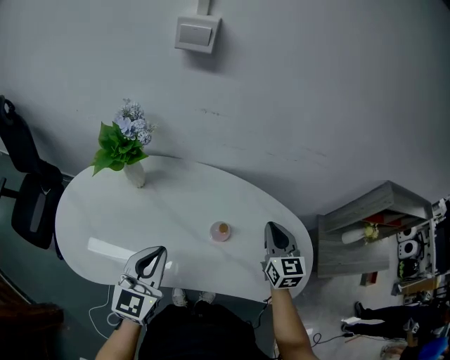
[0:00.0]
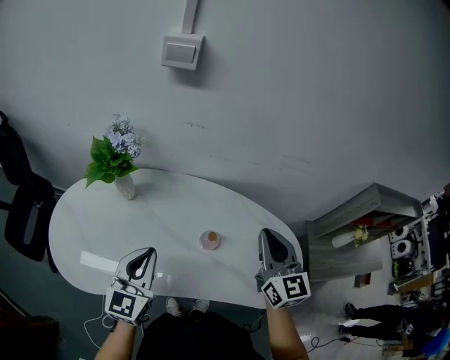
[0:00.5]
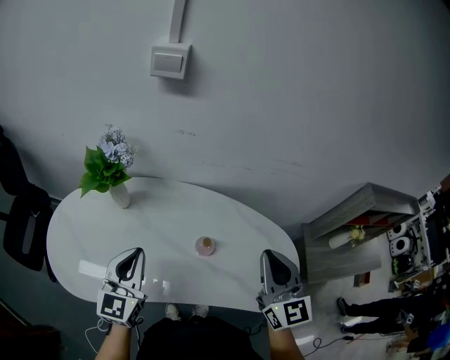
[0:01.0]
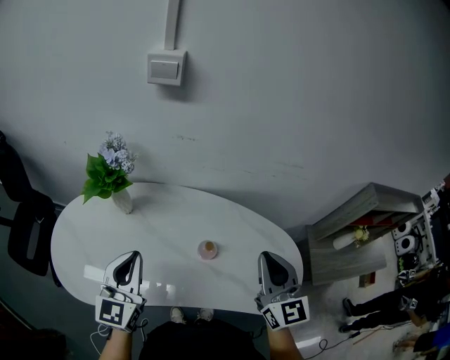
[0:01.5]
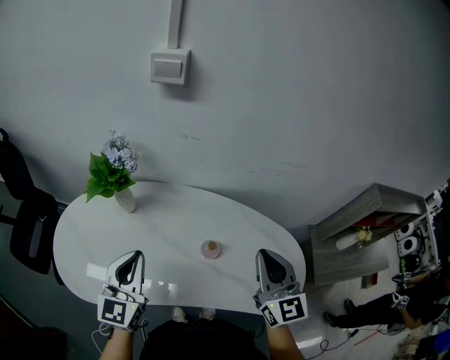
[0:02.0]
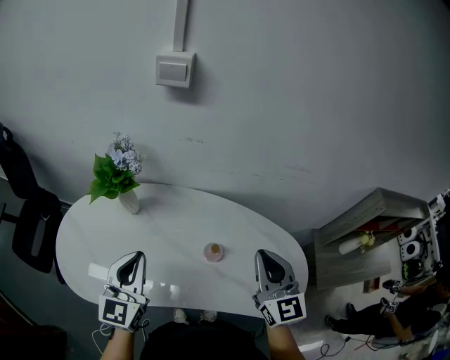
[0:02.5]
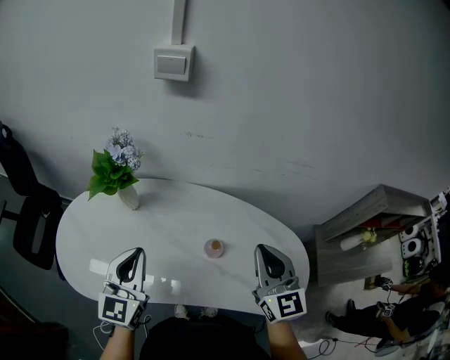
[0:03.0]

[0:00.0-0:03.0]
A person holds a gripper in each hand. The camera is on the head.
0:00.0 to 0:01.5: The left gripper shifts some 5 cm upward. Meanwhile the right gripper heads upward and backward, covering approximately 15 cm.
0:01.5 to 0:03.0: There are only small adjustments of the grippers.

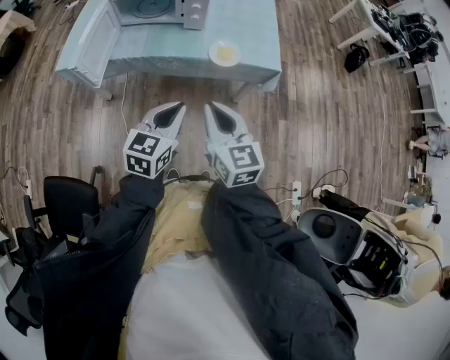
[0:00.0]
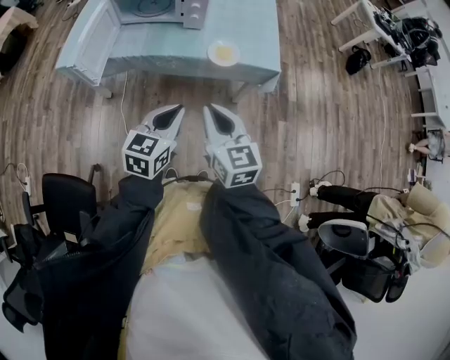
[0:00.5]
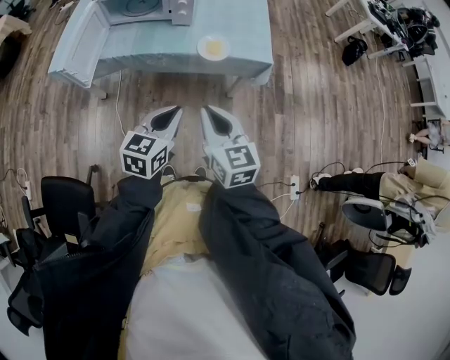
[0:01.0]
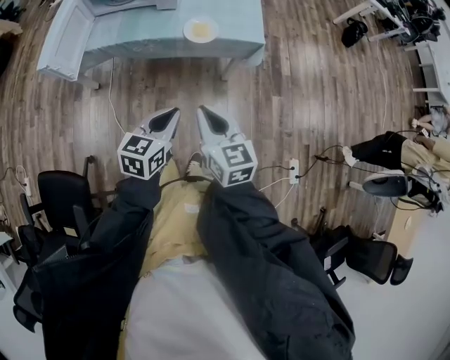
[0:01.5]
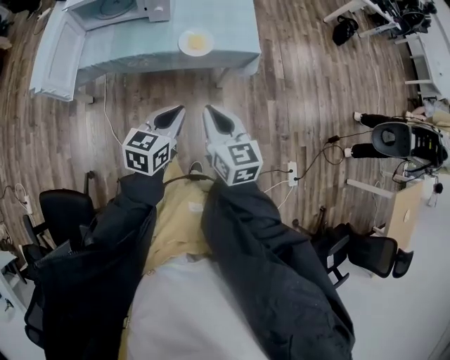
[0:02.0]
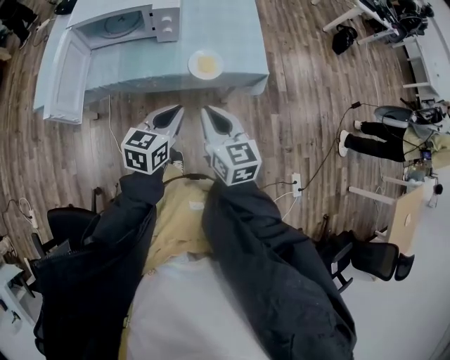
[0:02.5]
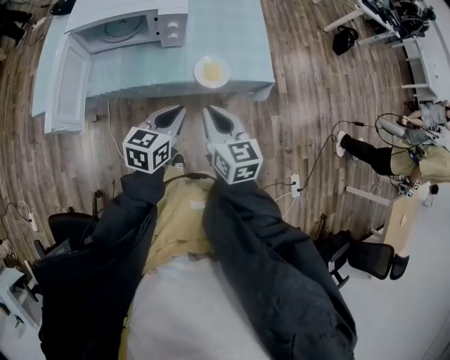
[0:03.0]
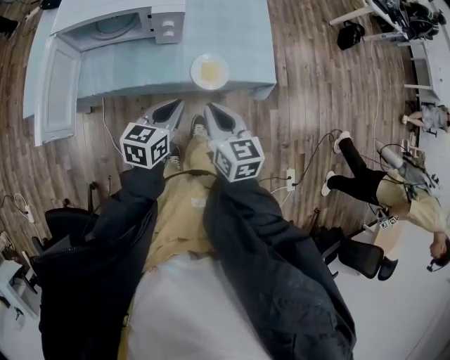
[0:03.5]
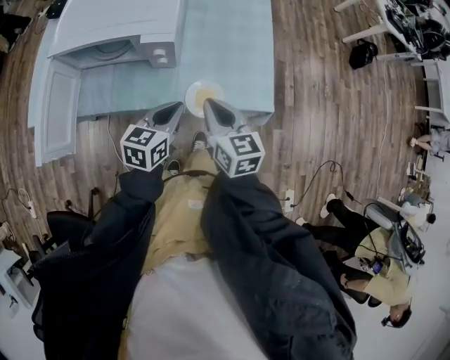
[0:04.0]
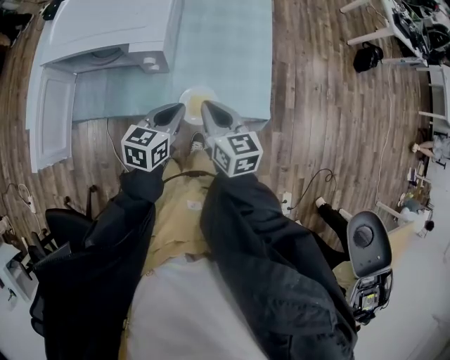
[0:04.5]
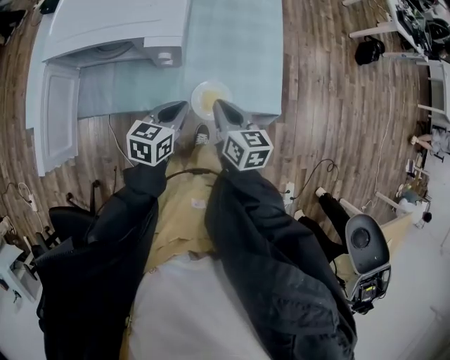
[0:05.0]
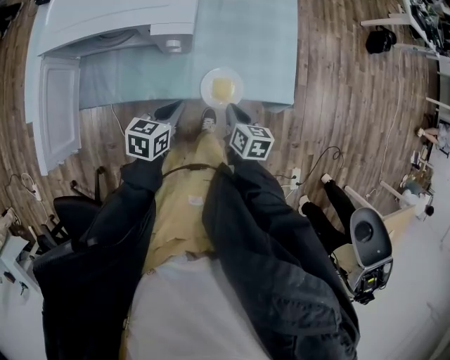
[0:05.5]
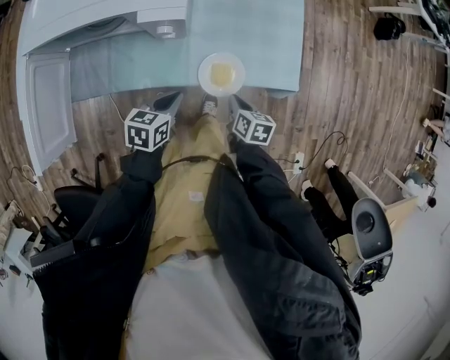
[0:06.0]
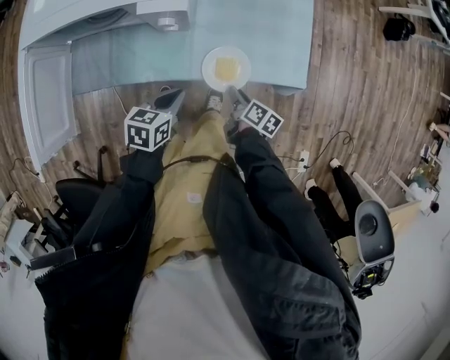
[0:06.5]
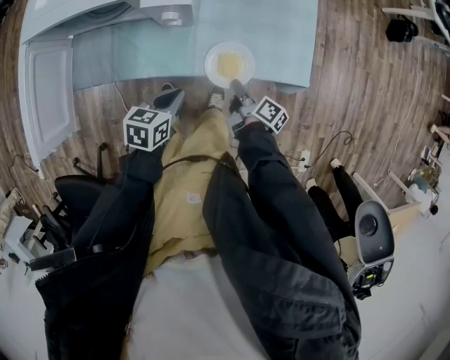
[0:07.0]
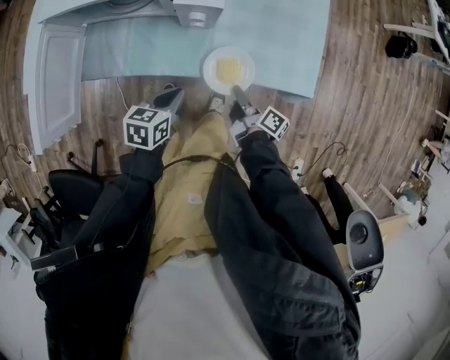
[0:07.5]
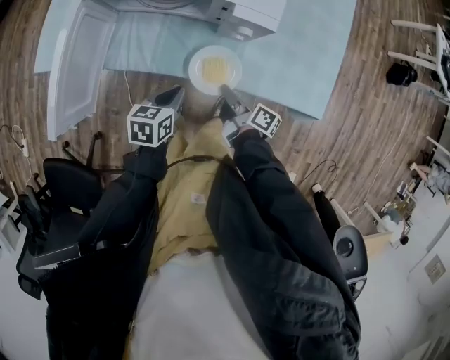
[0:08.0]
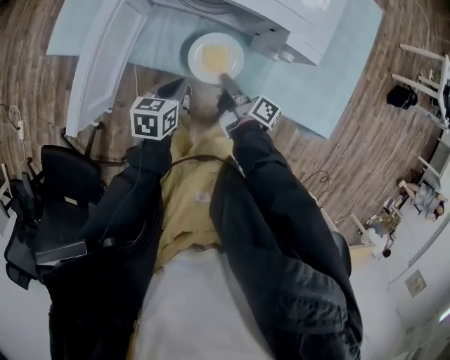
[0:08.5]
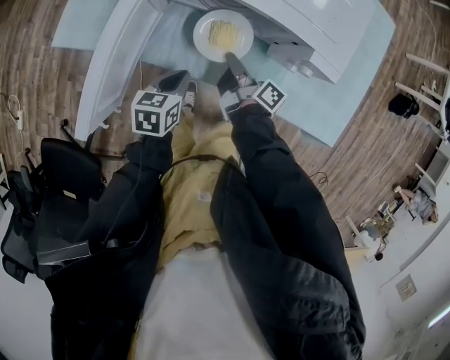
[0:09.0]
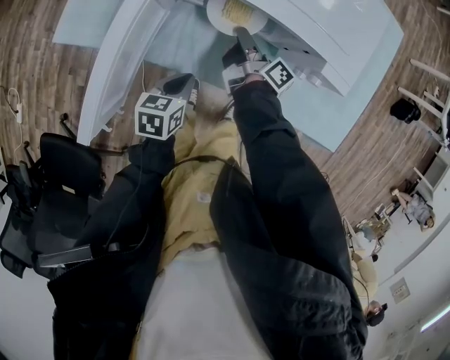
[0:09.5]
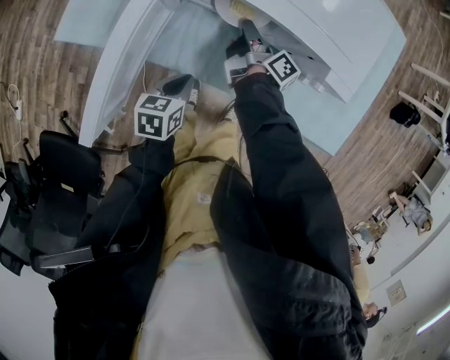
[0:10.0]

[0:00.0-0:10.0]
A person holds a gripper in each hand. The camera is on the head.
0:00.0 to 0:02.0: Both grippers move to the right and downward, roughly 10 cm.
0:02.0 to 0:04.0: Both grippers move forward, some 30 cm.
0:04.0 to 0:06.0: The right gripper heads downward, covering about 25 cm, and turns by approximately 40 degrees. Meanwhile the left gripper goes roughly 15 cm downward, and rotates approximately 20 degrees.
0:06.0 to 0:08.0: The two grippers go about 15 cm to the left. The right gripper angles its fingers upward, by roughly 30 degrees, and opens and closes again.
0:08.0 to 0:10.0: The left gripper heads to the left and forward, covering some 15 cm. The right gripper is displaced forward and to the left by roughly 30 cm.

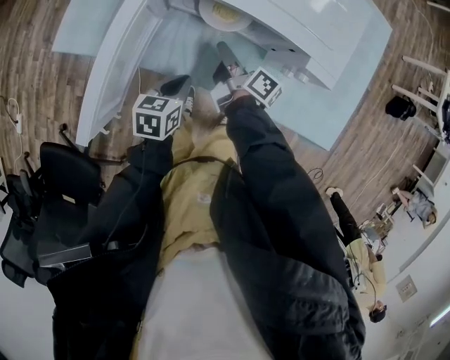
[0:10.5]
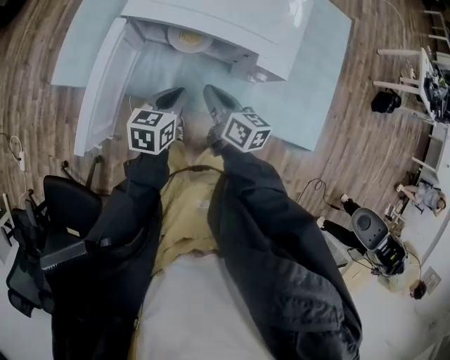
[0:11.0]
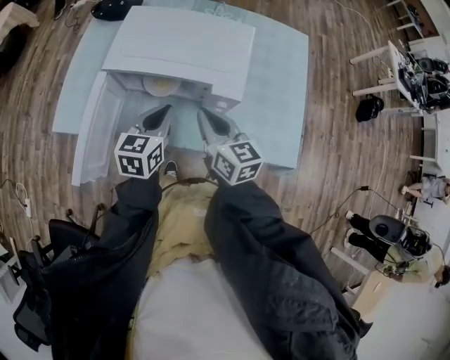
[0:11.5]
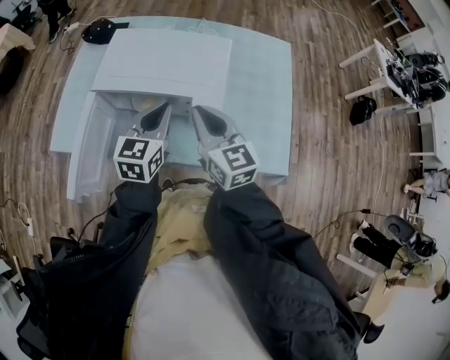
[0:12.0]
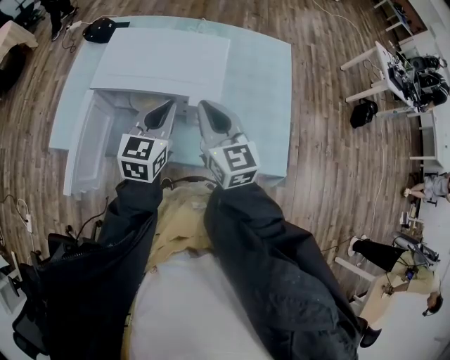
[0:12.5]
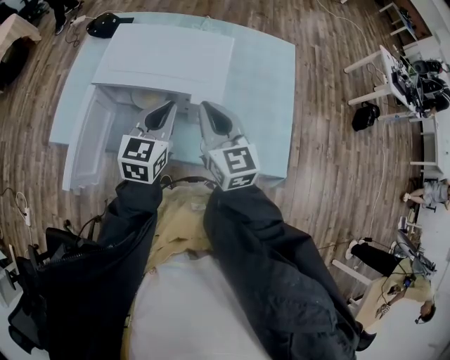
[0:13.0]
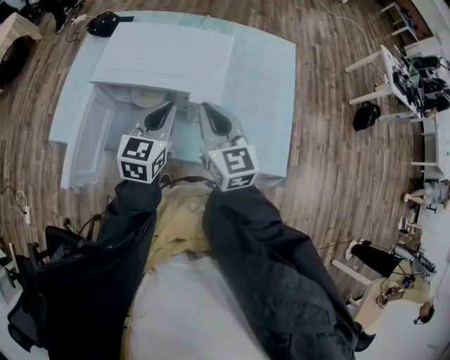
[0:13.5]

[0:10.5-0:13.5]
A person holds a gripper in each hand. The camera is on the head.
0:10.5 to 0:12.0: The grippers both shift upward and to the right by about 30 cm. The right gripper rotates around the line of its fingers by about 70 degrees, counterclockwise from behind, and closes. The left gripper rotates roughly 40 degrees.
0:12.0 to 0:13.5: The grippers stay close to where they were, moving slightly.

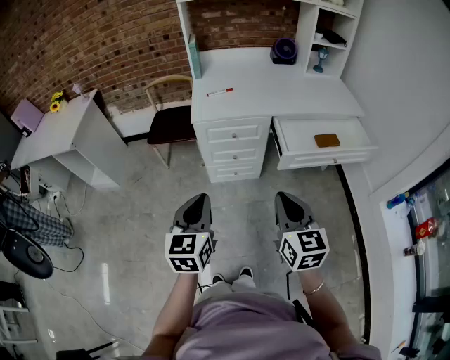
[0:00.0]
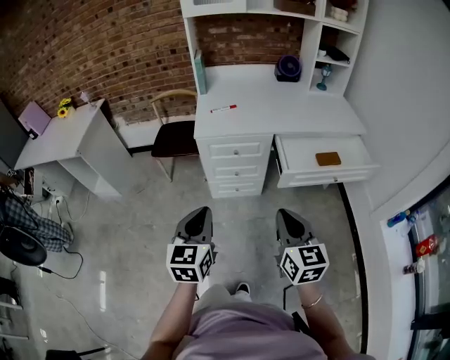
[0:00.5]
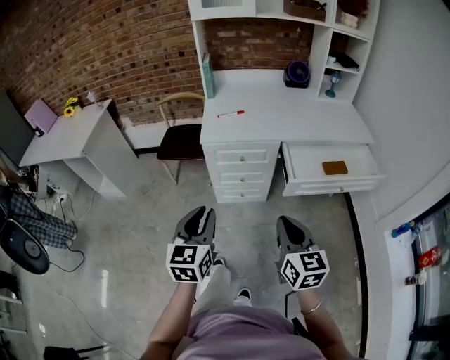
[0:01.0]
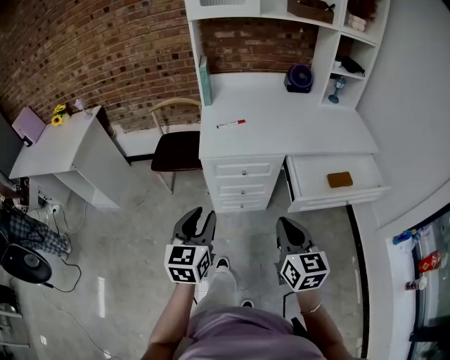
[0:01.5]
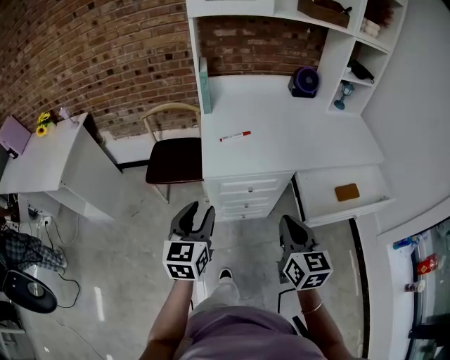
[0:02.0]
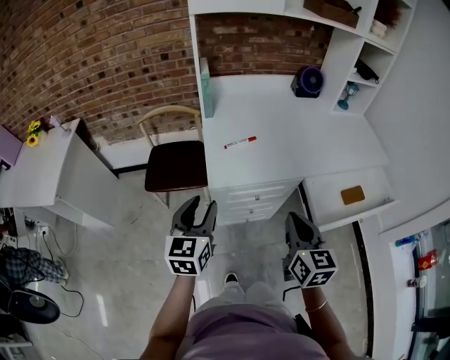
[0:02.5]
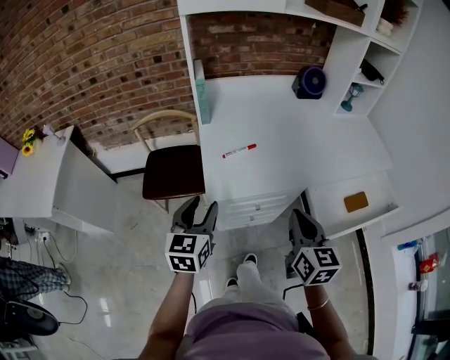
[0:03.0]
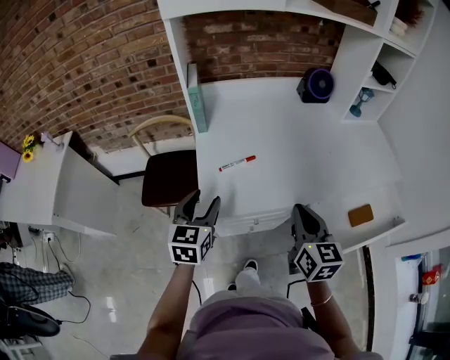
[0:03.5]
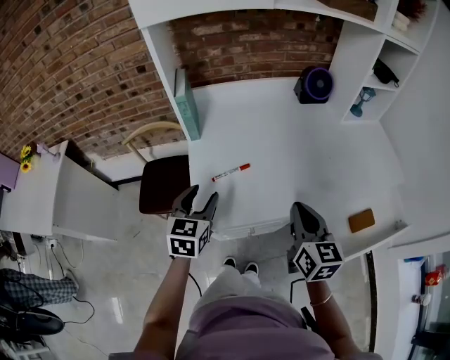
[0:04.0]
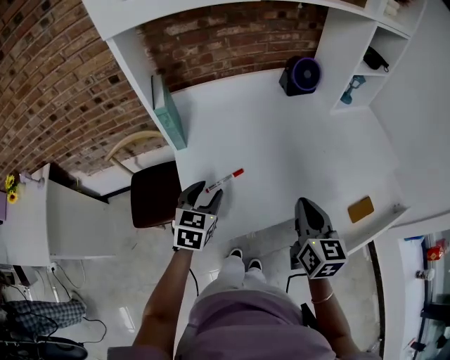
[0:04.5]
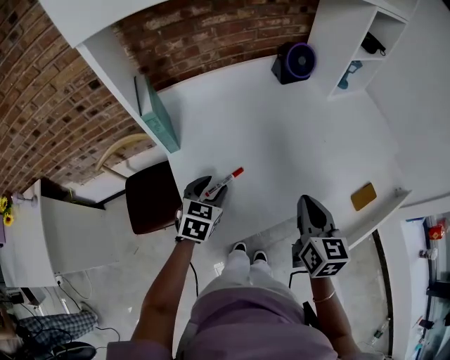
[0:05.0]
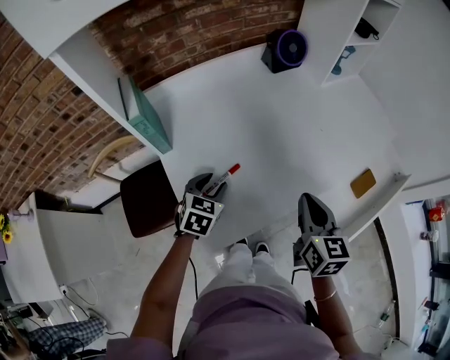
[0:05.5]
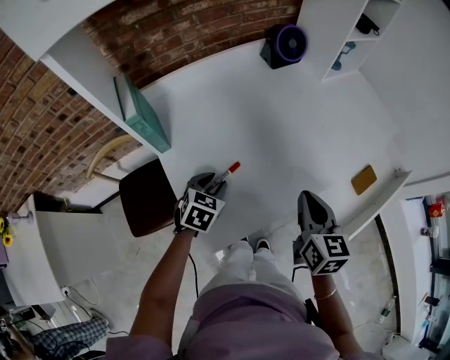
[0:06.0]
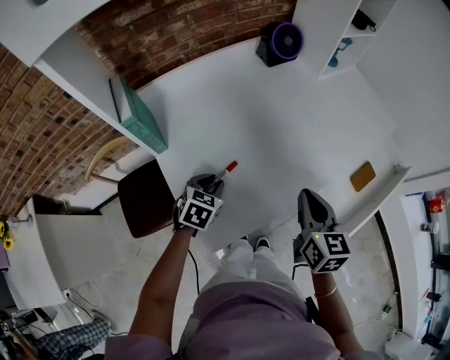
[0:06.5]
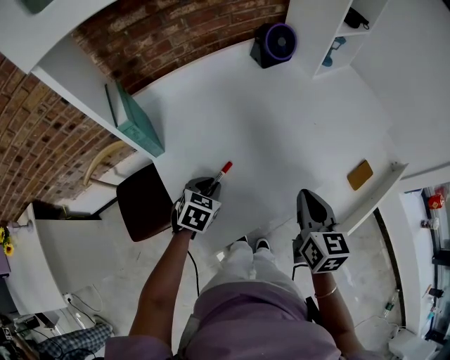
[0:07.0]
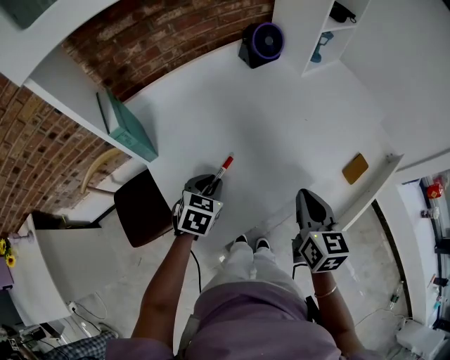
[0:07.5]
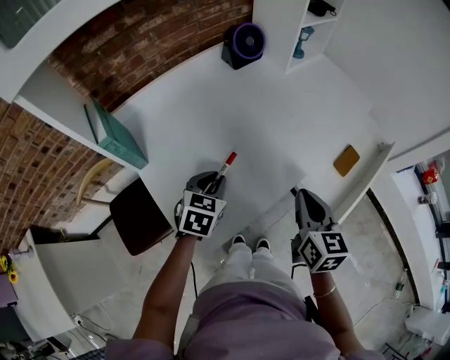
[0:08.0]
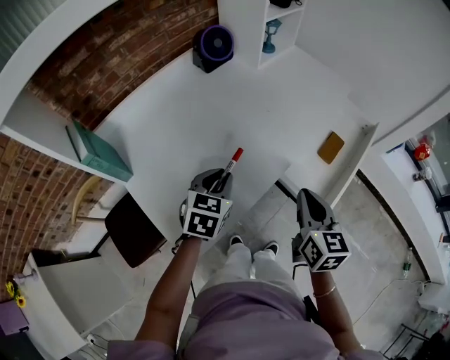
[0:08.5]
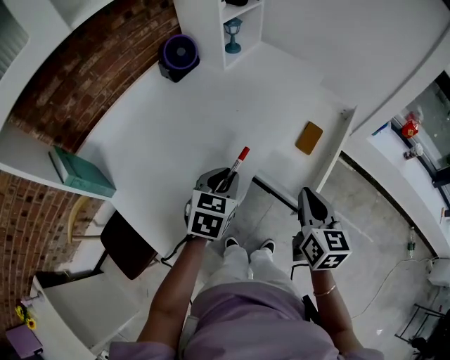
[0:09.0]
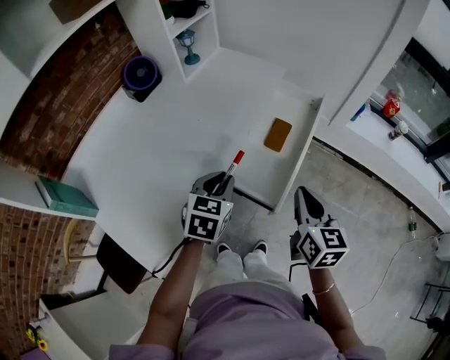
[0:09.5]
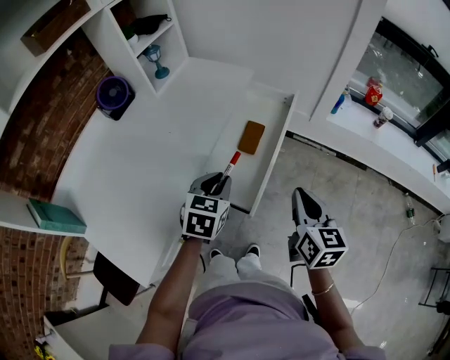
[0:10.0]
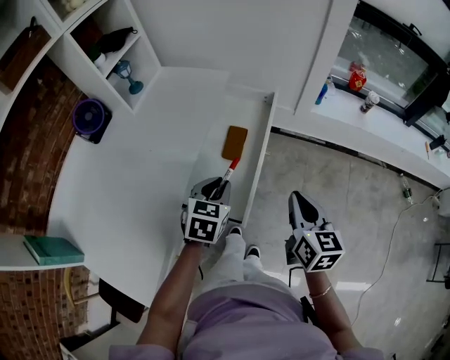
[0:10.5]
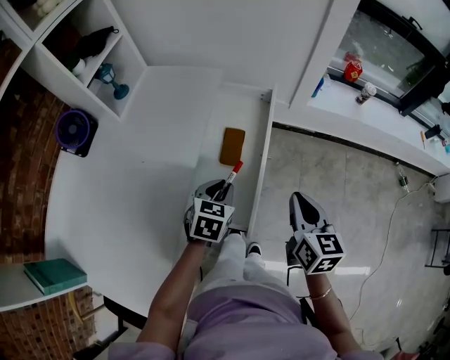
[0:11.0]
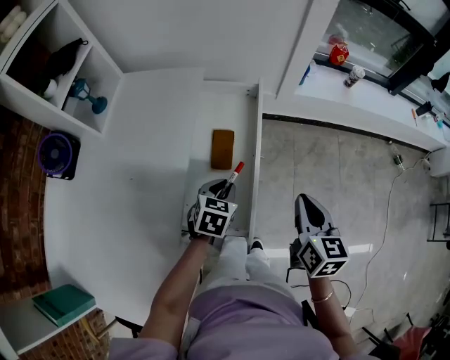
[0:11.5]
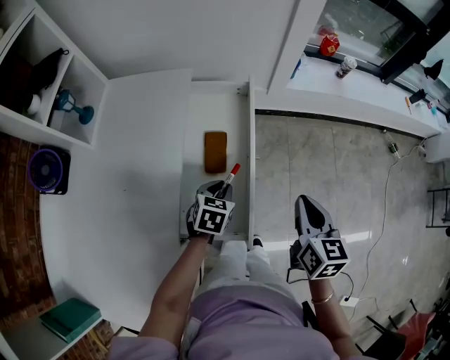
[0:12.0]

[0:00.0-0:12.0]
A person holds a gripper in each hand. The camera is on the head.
0:00.0 to 0:02.0: The two grippers go roughly 25 cm forward. The left gripper opens its fingers.
0:02.0 to 0:04.0: Both grippers travel together forward, about 30 cm.
0:04.0 to 0:06.0: The right gripper changes place by about 5 cm, and swivels roughly 20 degrees. Meanwhile the left gripper shifts about 15 cm downward, and rotates roughly 40 degrees.
0:06.0 to 0:08.0: The left gripper moves to the right and upward, about 10 cm. The right gripper heads to the right, covering approximately 5 cm.
0:08.0 to 0:10.0: The left gripper changes place by approximately 40 cm, and swivels some 30 degrees. Meanwhile the right gripper changes place by roughly 35 cm, and swivels roughly 30 degrees.
0:10.0 to 0:12.0: The left gripper heads downward, covering about 15 cm, and swivels roughly 30 degrees. The right gripper moves approximately 10 cm, and swivels some 30 degrees.
